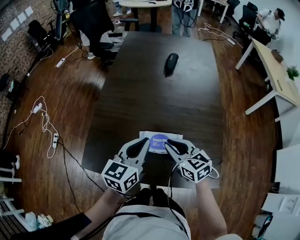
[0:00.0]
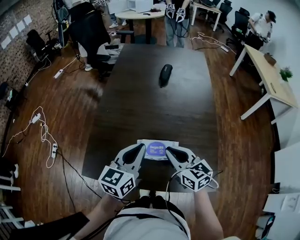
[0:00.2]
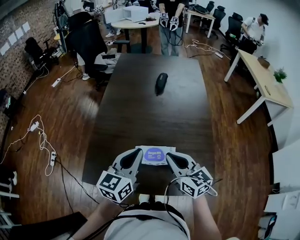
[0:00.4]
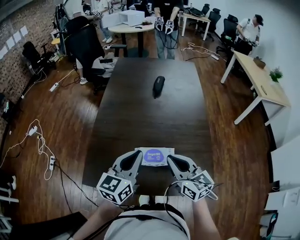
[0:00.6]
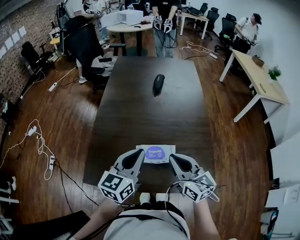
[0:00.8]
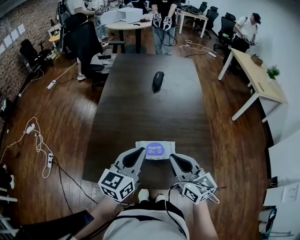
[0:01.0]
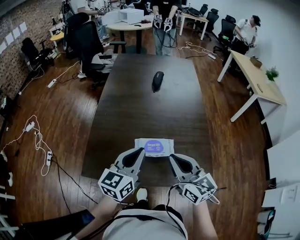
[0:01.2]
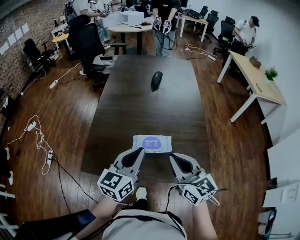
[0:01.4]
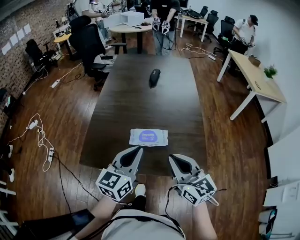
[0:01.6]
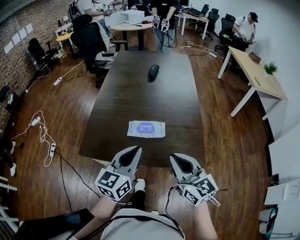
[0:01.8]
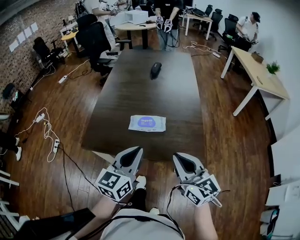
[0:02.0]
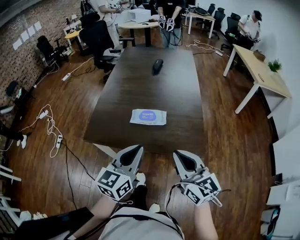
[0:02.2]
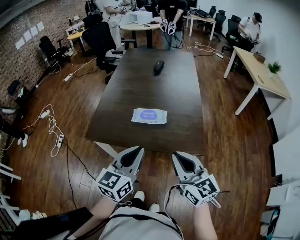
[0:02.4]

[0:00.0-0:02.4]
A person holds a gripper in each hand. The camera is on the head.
0:00.0 to 0:01.2: The left gripper is displaced backward and upward by some 10 cm; the right gripper travels upward and backward by roughly 15 cm, and swivels approximately 20 degrees.
0:01.2 to 0:02.4: Both grippers travel together backward, roughly 25 cm.

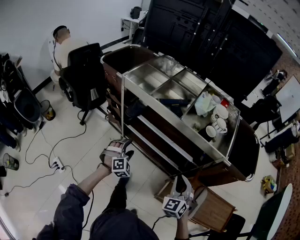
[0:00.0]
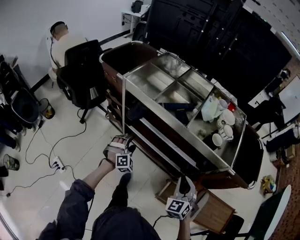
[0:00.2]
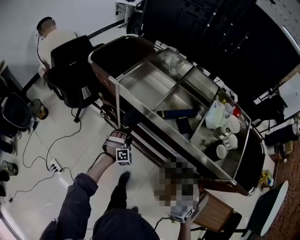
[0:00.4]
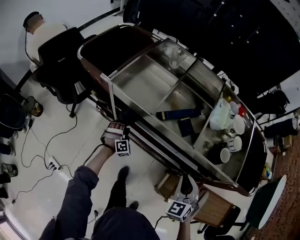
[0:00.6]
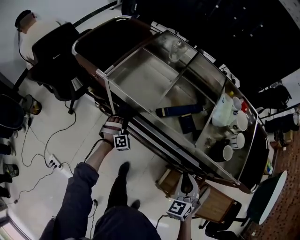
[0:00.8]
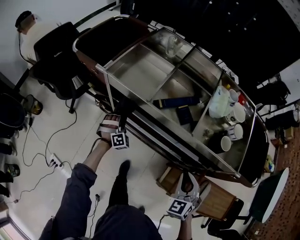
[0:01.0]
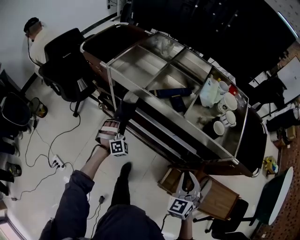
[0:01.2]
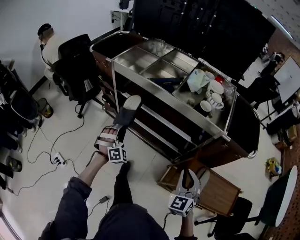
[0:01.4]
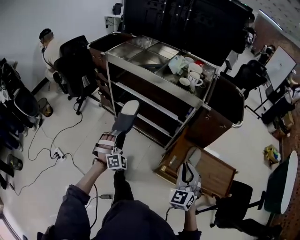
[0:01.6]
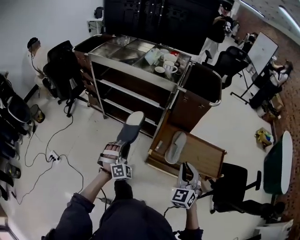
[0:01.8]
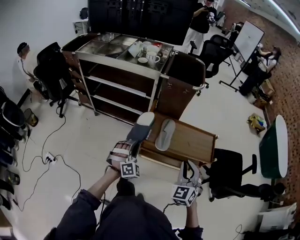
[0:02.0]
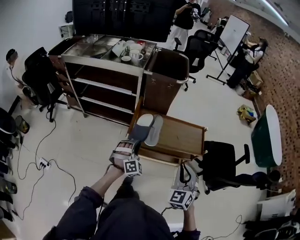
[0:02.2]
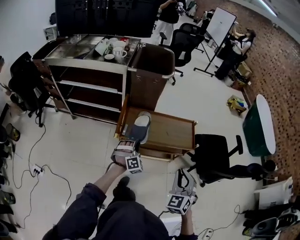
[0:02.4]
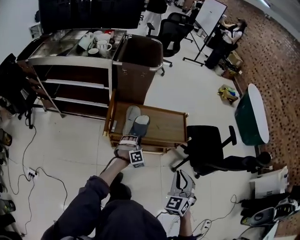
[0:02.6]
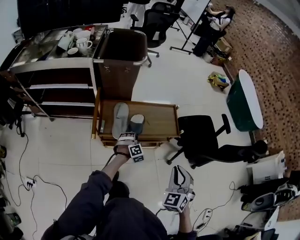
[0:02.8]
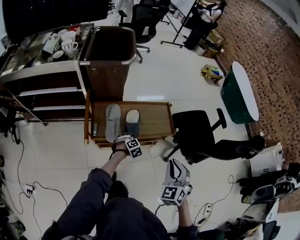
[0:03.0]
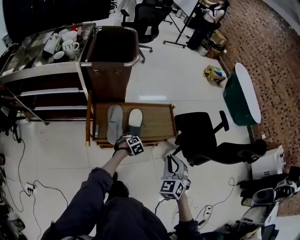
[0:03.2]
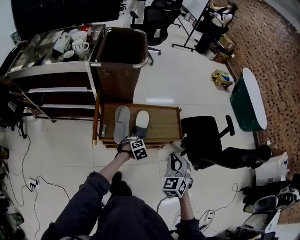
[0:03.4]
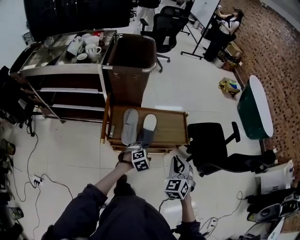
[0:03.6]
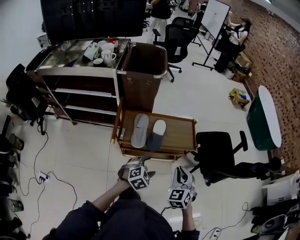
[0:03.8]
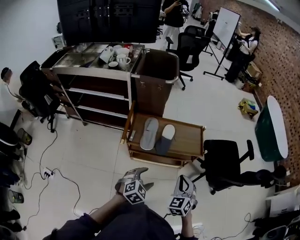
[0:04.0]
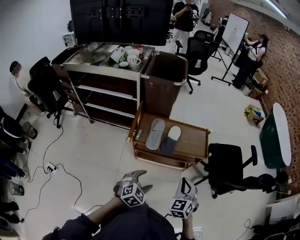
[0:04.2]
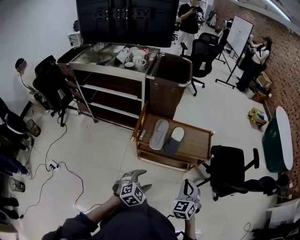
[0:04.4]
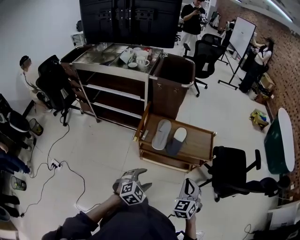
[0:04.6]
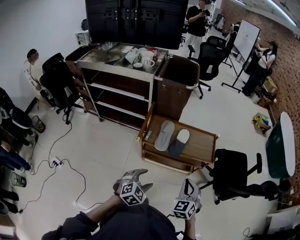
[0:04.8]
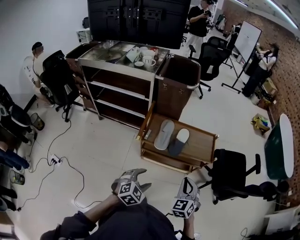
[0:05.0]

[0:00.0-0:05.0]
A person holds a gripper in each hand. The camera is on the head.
0:00.0 to 0:01.6: Both grippers travel together backward and to the right, some 20 cm. The left gripper swivels about 20 degrees, and closes up.
0:01.6 to 0:03.4: The right gripper moves some 40 cm, and turns by some 30 degrees, while the left gripper ends up about 60 cm from where it was, angles its fingers downward, by roughly 40 degrees, and opens up.
0:03.4 to 0:05.0: The left gripper goes approximately 35 cm backward and upward, and changes its angle by some 30 degrees; the right gripper shifts roughly 15 cm backward.

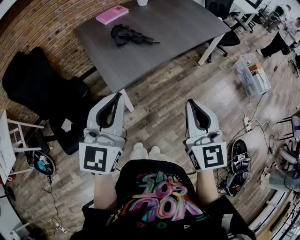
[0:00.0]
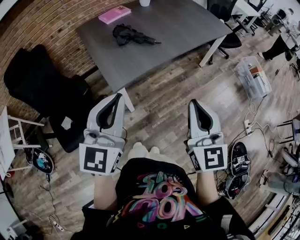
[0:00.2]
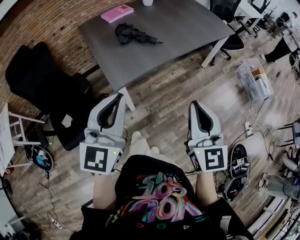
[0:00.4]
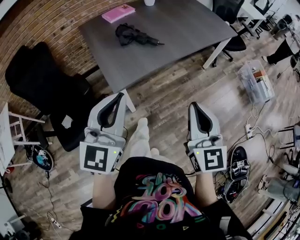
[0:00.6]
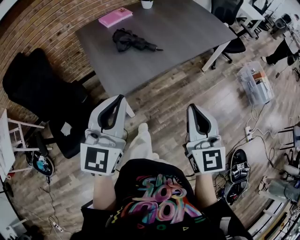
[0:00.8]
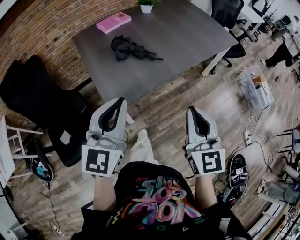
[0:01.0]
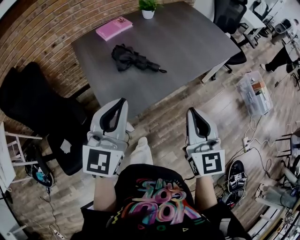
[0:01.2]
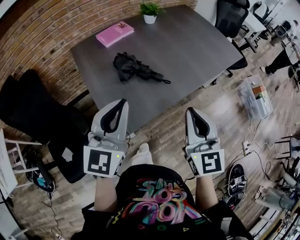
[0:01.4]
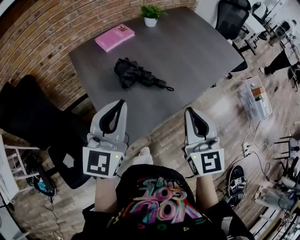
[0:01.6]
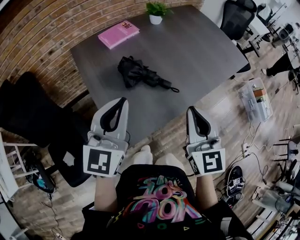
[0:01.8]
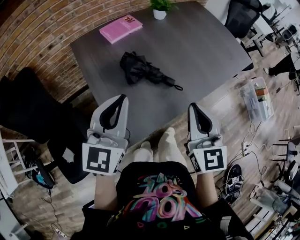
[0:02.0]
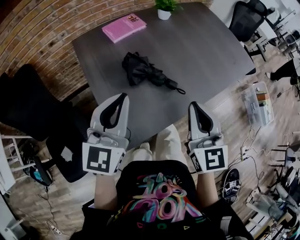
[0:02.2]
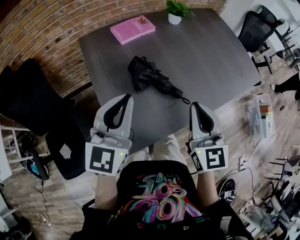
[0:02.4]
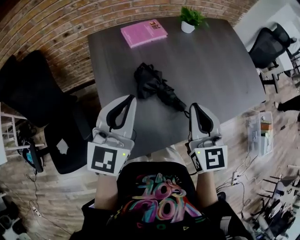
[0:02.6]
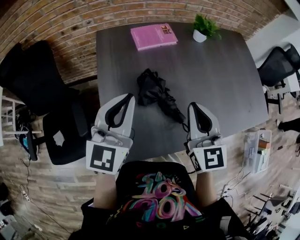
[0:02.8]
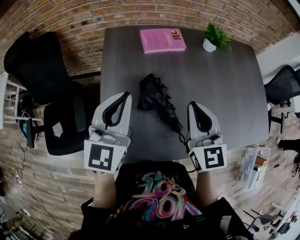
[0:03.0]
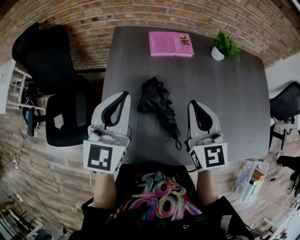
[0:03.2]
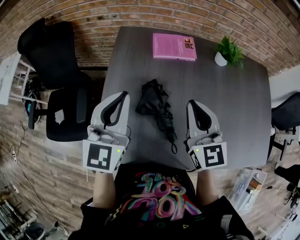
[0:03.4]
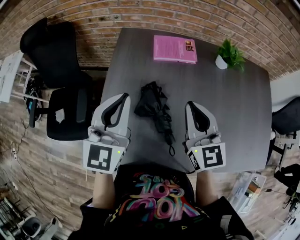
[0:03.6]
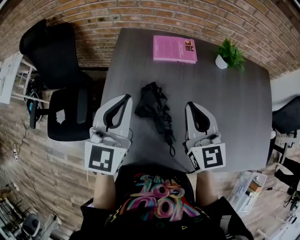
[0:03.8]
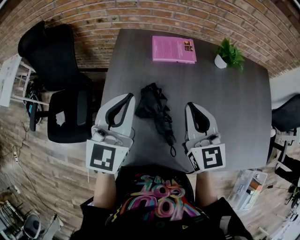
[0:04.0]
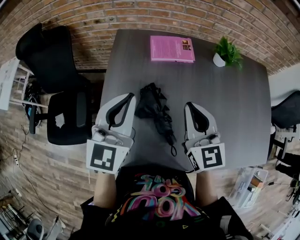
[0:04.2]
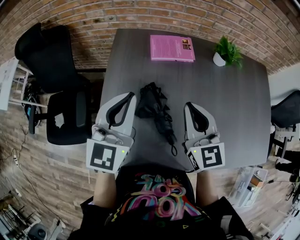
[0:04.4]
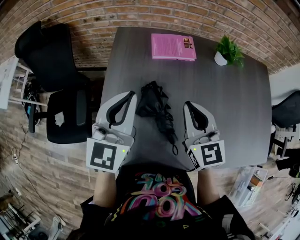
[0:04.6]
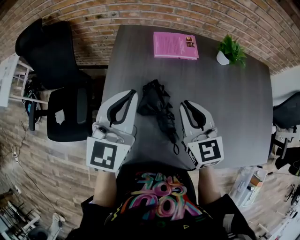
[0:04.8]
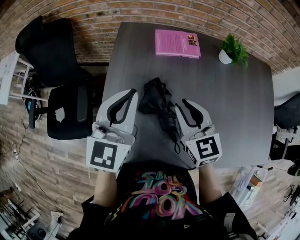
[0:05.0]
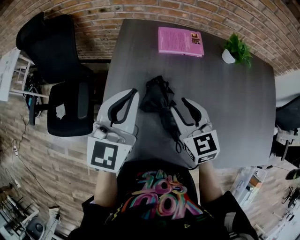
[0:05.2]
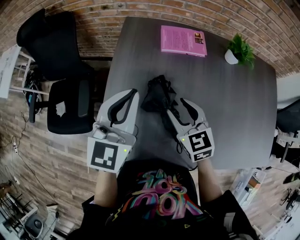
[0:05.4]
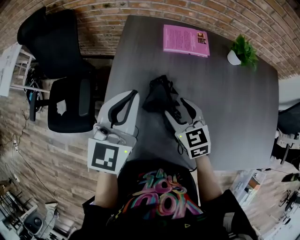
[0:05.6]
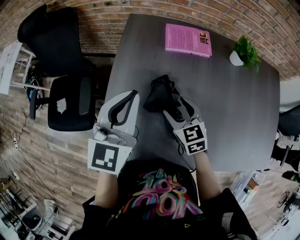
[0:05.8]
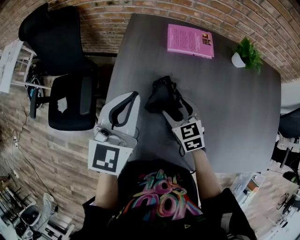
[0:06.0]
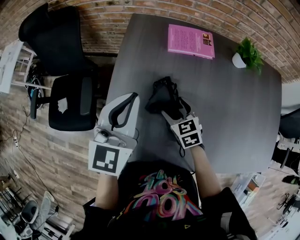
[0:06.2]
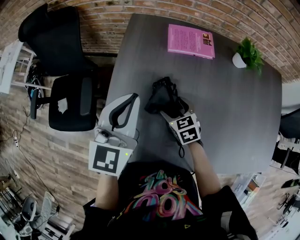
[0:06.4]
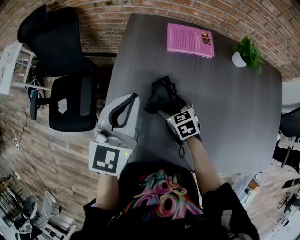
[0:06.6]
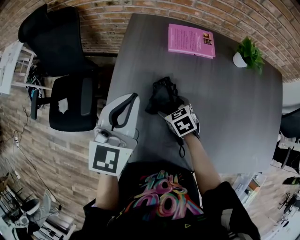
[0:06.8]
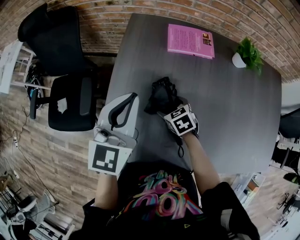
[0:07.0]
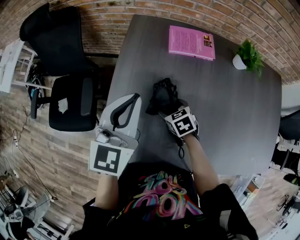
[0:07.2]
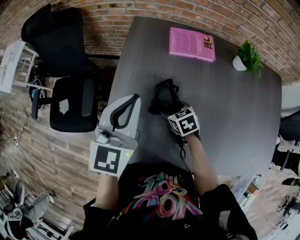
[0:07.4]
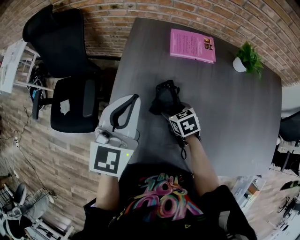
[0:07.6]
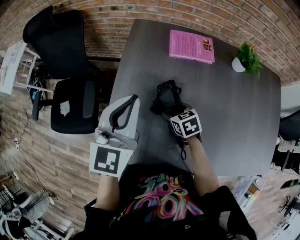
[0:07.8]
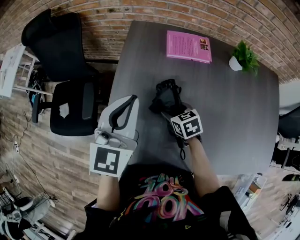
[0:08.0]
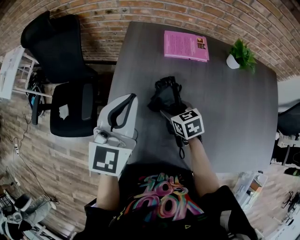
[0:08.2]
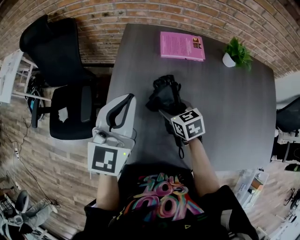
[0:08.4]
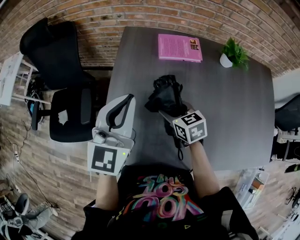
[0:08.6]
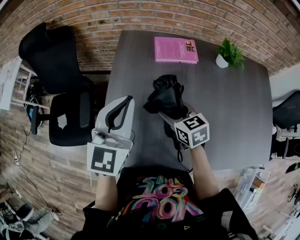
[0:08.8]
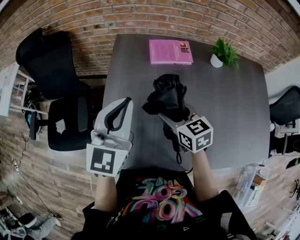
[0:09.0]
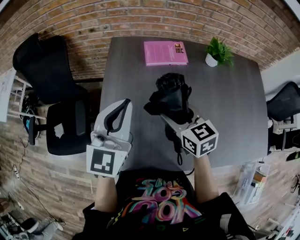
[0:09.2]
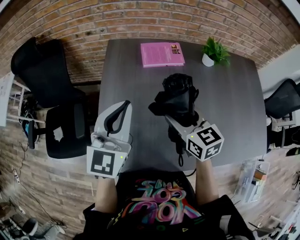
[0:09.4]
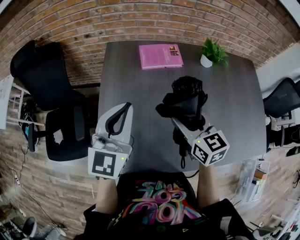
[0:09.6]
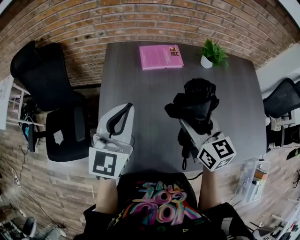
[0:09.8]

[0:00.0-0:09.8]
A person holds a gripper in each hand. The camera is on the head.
0:00.0 to 0:01.4: Both grippers move forward, some 25 cm.
0:01.4 to 0:02.8: Both grippers travel together forward, about 20 cm. The right gripper swivels some 20 degrees, while the left gripper swivels roughly 20 degrees.
0:02.8 to 0:04.2: The left gripper is displaced forward by roughly 5 cm, while the right gripper heads forward, covering approximately 10 cm.
0:04.2 to 0:05.6: The right gripper heads downward and to the left, covering approximately 15 cm, turns by roughly 30 degrees, and opens its fingers.
0:05.6 to 0:07.0: The right gripper is displaced downward by some 15 cm, and rotates some 30 degrees.
0:07.0 to 0:08.4: The right gripper heads upward, covering approximately 10 cm.
0:08.4 to 0:09.8: The right gripper is displaced upward and to the right by roughly 20 cm, and rotates approximately 30 degrees.

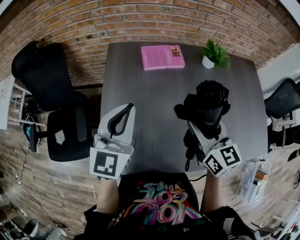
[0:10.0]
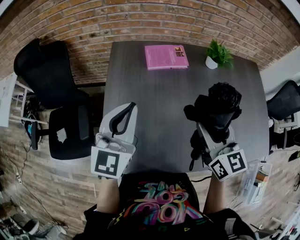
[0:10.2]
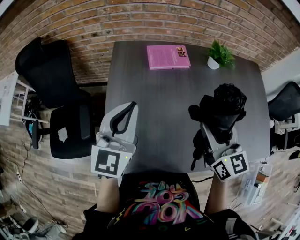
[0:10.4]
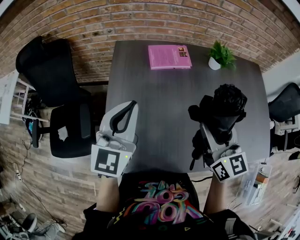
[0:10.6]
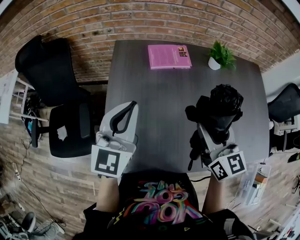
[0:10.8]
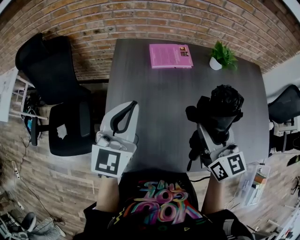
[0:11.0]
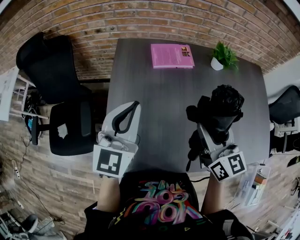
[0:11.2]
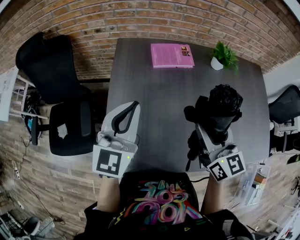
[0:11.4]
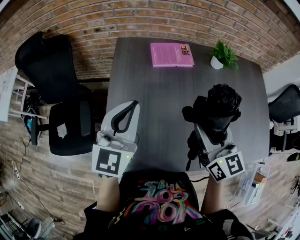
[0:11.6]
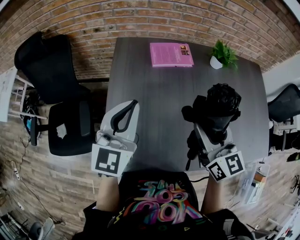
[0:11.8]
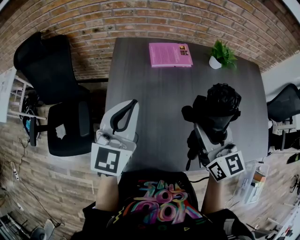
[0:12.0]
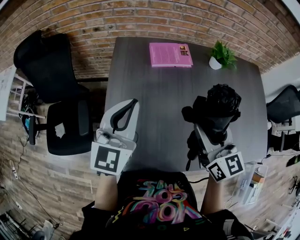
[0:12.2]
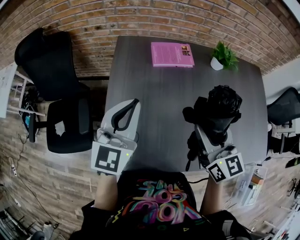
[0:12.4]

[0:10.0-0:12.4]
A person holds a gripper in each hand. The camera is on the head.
0:10.0 to 0:11.2: The grippers make only small movements.
0:11.2 to 0:12.4: The two grippers keep their place.

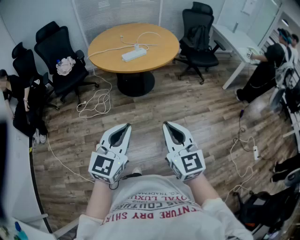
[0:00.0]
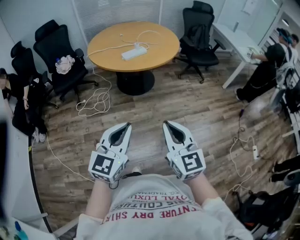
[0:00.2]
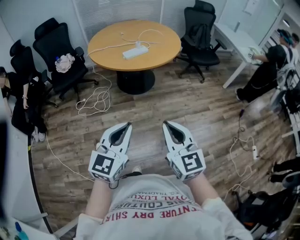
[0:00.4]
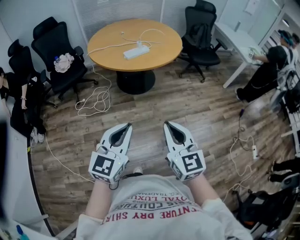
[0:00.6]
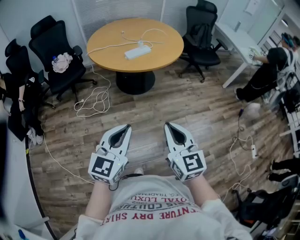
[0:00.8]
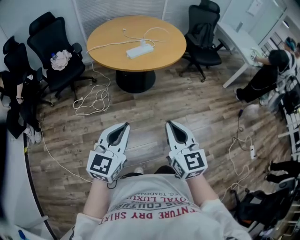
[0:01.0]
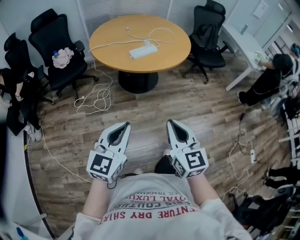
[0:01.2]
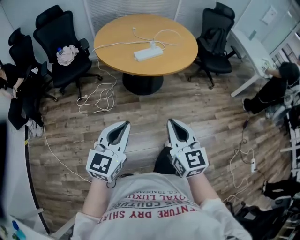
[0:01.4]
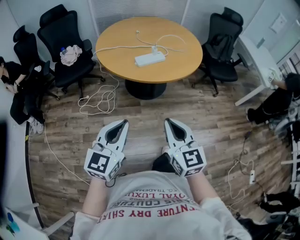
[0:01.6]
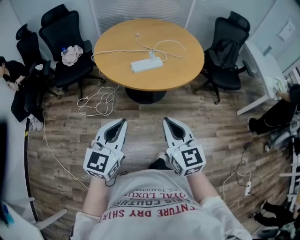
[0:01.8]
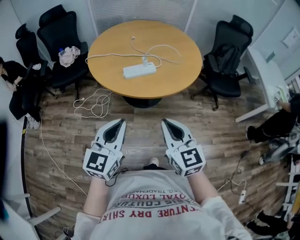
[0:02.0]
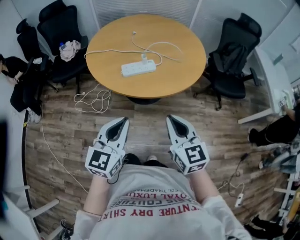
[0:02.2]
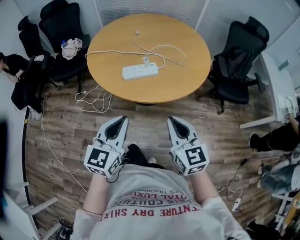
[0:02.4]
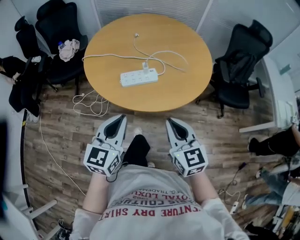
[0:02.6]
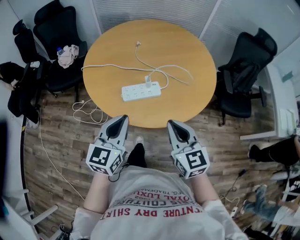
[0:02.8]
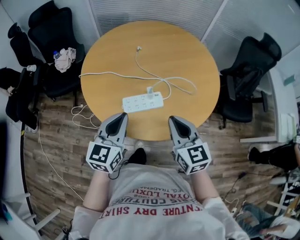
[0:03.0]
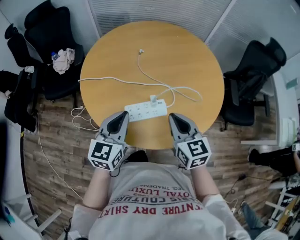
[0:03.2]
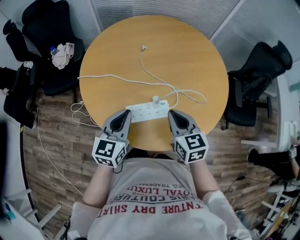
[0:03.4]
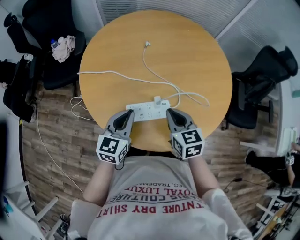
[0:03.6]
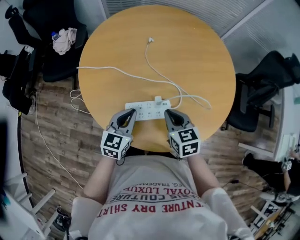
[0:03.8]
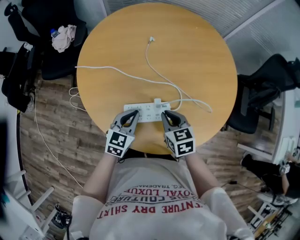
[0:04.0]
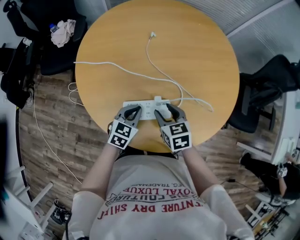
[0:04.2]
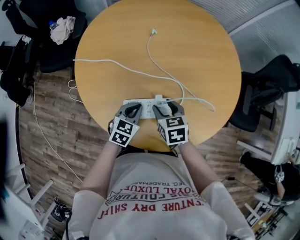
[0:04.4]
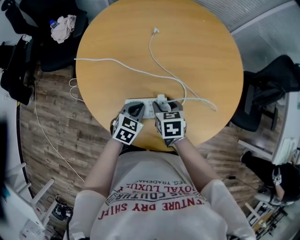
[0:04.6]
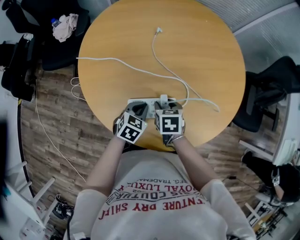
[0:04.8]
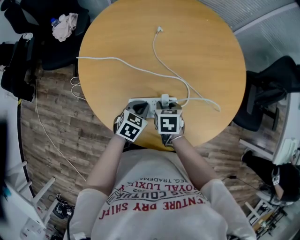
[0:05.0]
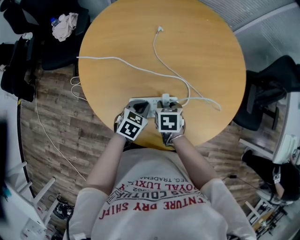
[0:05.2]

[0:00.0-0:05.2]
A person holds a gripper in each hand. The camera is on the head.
0:00.0 to 0:01.8: Both grippers move forward, about 30 cm.
0:01.8 to 0:03.4: Both grippers are carried forward, some 50 cm. The right gripper turns by approximately 20 degrees.
0:03.4 to 0:05.2: Both grippers travel together downward, about 20 cm. The right gripper angles its fingers downward, by approximately 40 degrees, and opens up; the left gripper tips its fingers downward by some 30 degrees.
